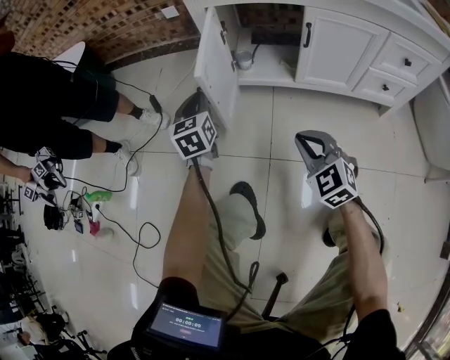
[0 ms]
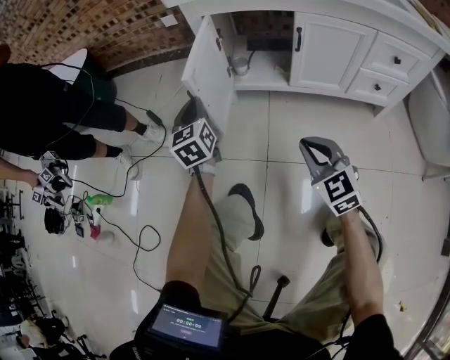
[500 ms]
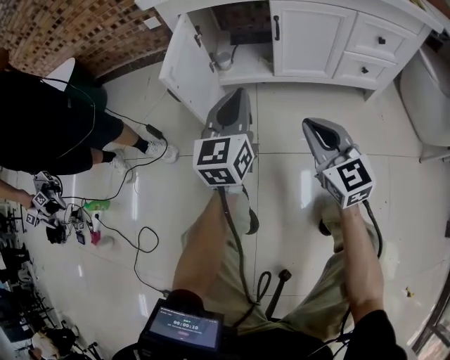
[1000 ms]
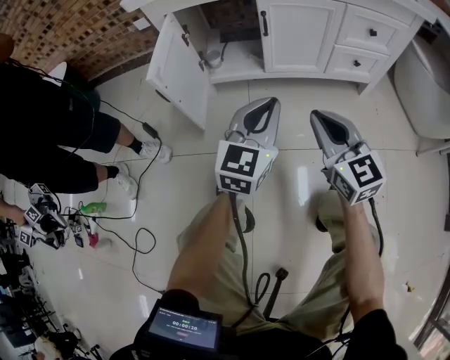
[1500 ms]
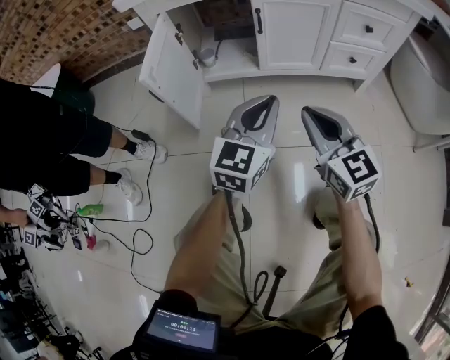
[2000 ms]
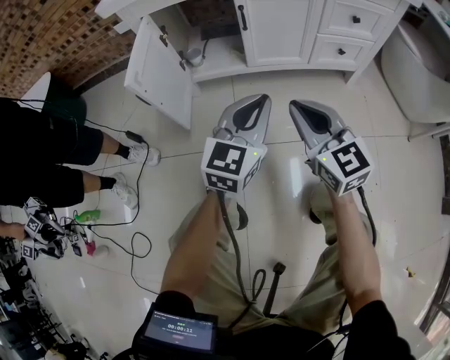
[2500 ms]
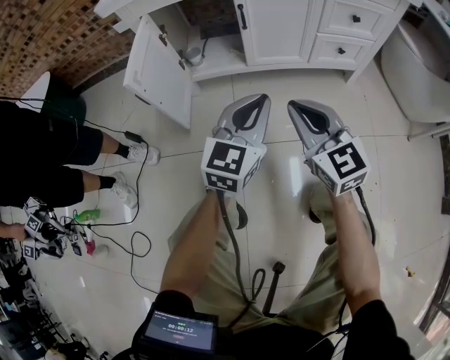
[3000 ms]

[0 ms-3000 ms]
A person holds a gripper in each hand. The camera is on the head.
0 ms to 1500 ms: The left gripper heads to the right and backward, covering about 35 cm, and changes its angle by some 40 degrees. The right gripper goes roughly 15 cm to the right, upward and backward, and rotates about 40 degrees.
1500 ms to 3000 ms: There are only small adjustments of the grippers.

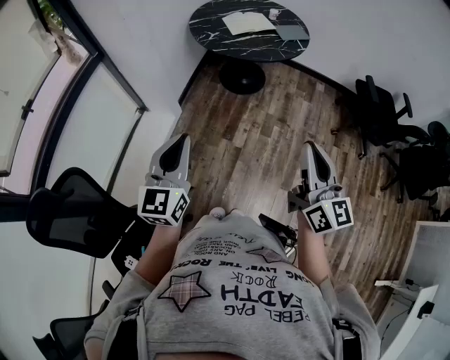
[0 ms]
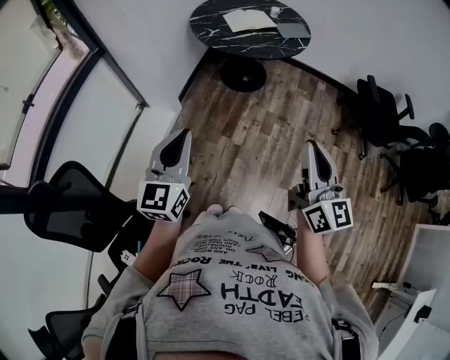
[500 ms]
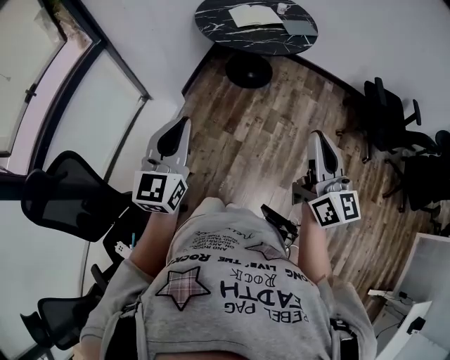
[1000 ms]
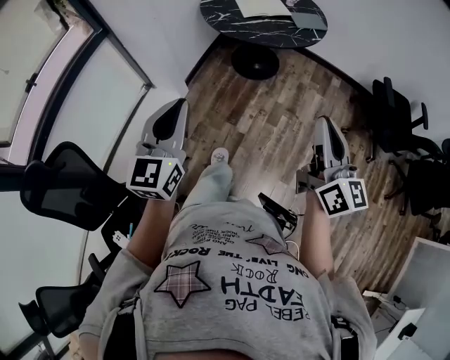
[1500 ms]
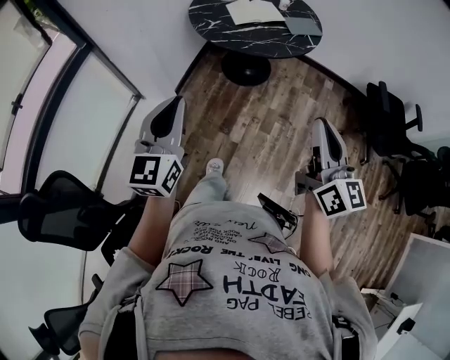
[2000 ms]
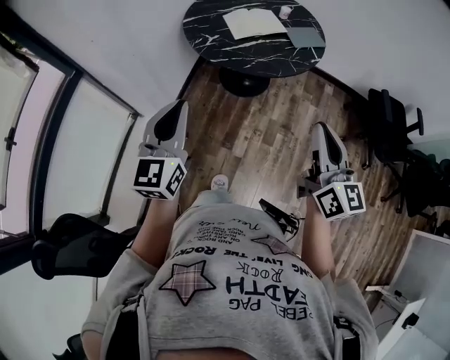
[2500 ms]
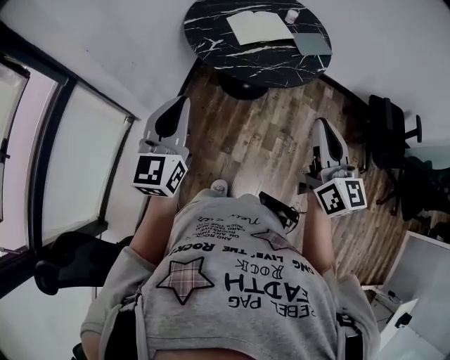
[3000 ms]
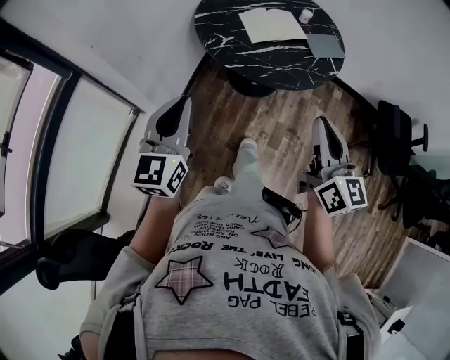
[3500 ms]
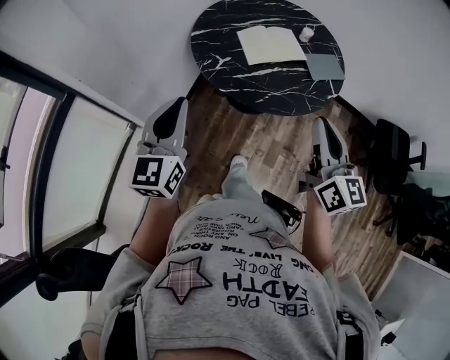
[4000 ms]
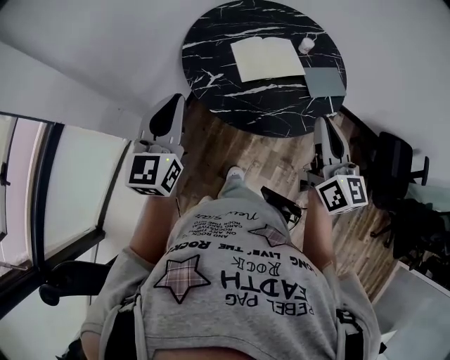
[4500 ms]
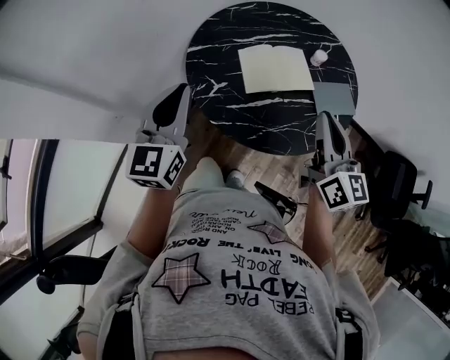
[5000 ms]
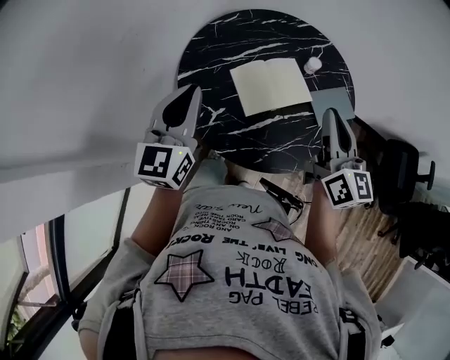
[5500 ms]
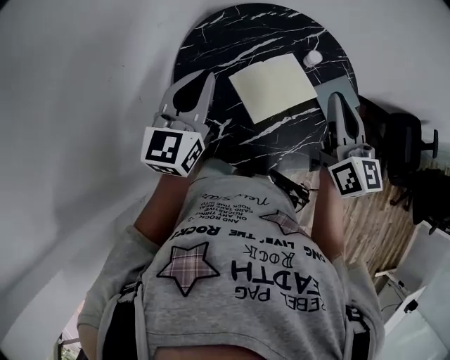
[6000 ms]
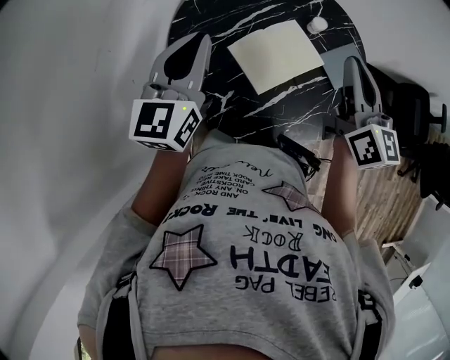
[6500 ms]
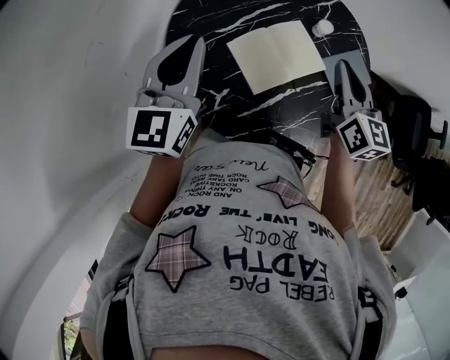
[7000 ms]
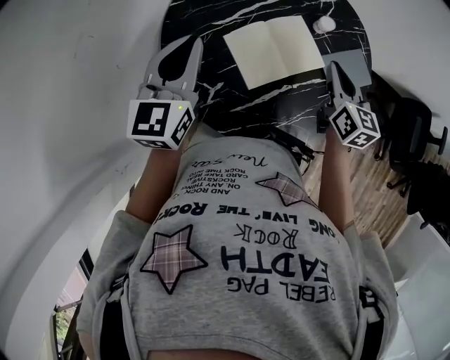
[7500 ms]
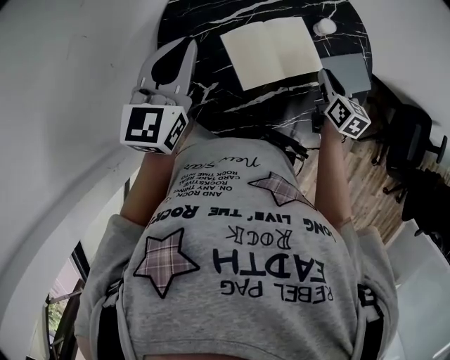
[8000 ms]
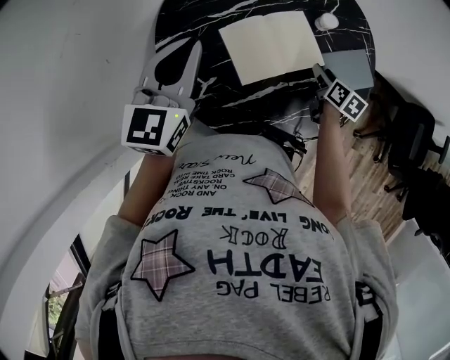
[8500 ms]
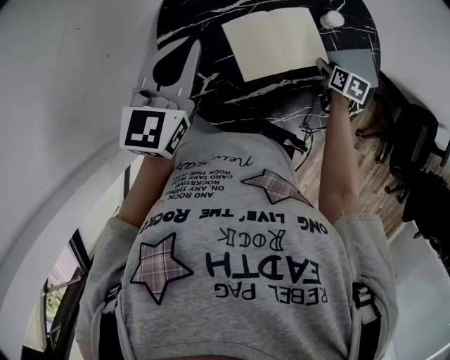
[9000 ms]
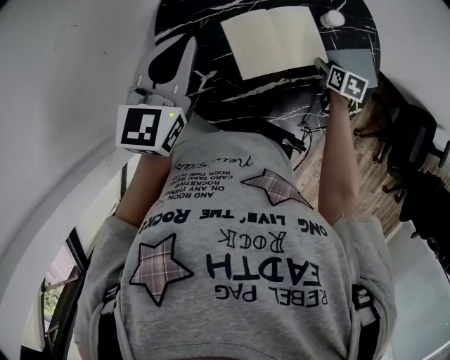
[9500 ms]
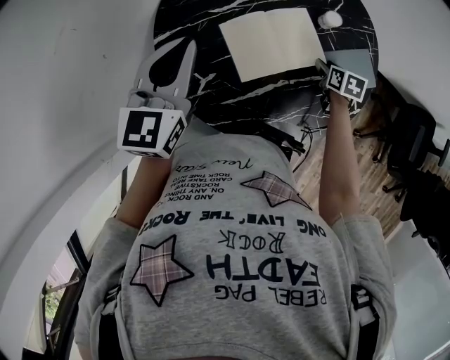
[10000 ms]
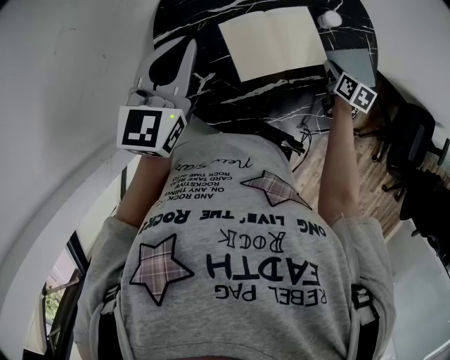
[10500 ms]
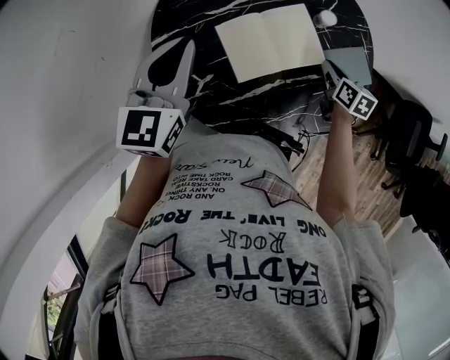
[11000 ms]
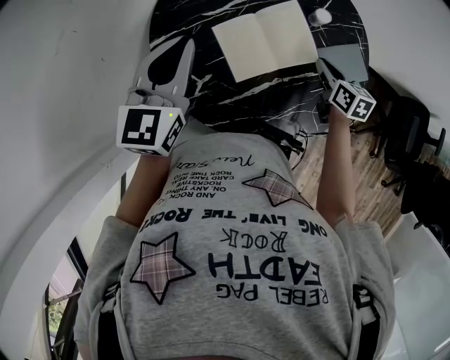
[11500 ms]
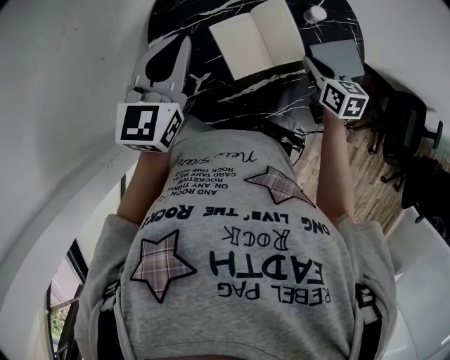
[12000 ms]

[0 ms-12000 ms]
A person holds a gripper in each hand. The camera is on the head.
0 ms to 2000 ms: Both grippers move forward, about 15 cm.
2000 ms to 4000 ms: Both grippers move forward, approximately 35 cm.
4000 ms to 6000 ms: The two grippers go about 40 cm forward.
6000 ms to 8000 ms: The right gripper moves downward, roughly 25 cm, and points its fingers approximately 30 degrees further downward. Meanwhile the left gripper is displaced downward by approximately 5 cm.
8000 ms to 10000 ms: The right gripper travels downward by roughly 10 cm, rotates approximately 30 degrees, and opens.
10000 ms to 12000 ms: The right gripper moves upward and to the left, roughly 15 cm, changes its angle by approximately 20 degrees, and closes its fingers.

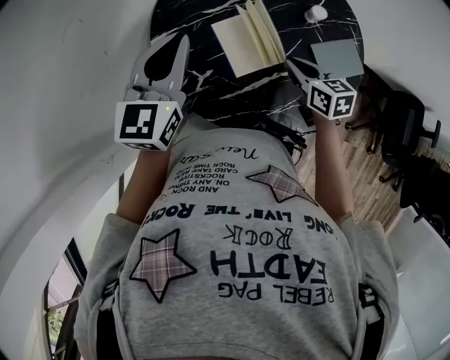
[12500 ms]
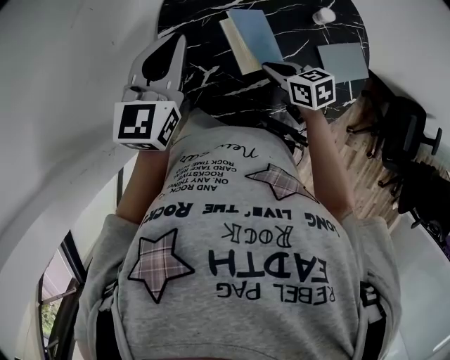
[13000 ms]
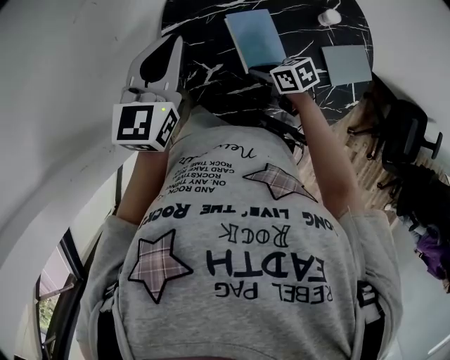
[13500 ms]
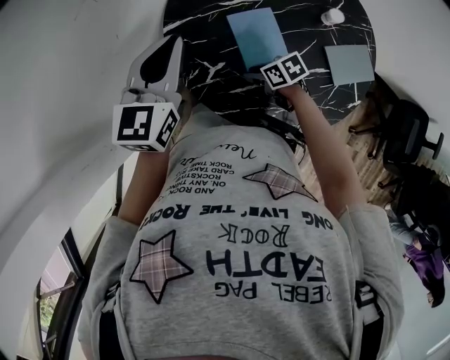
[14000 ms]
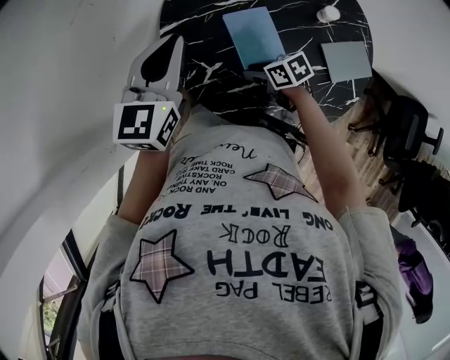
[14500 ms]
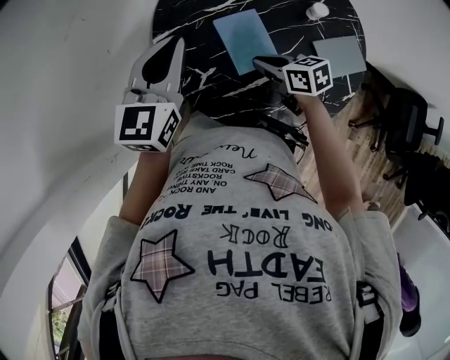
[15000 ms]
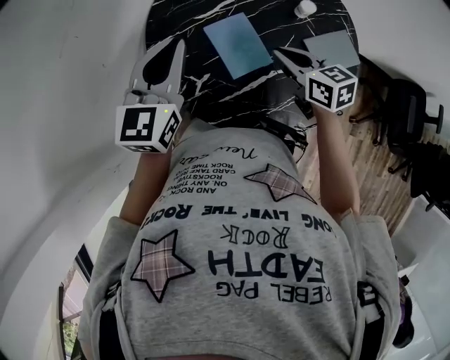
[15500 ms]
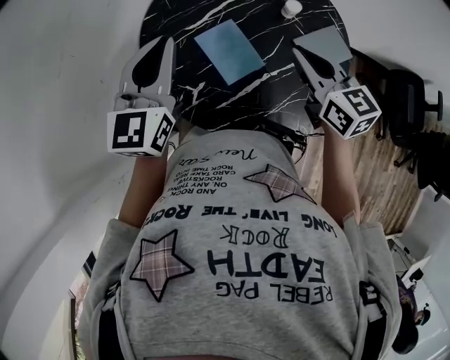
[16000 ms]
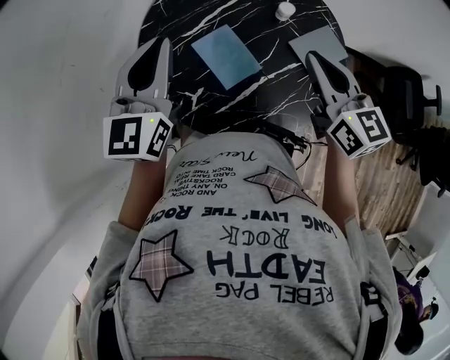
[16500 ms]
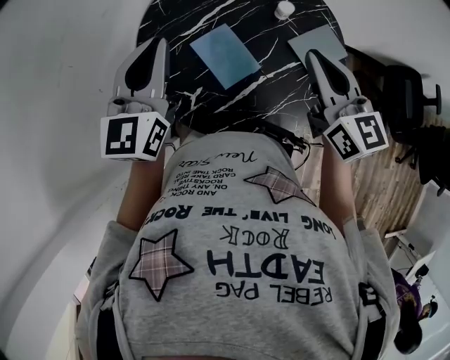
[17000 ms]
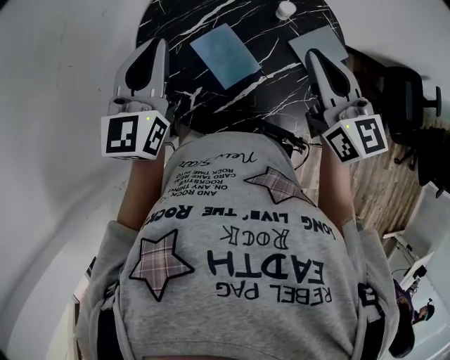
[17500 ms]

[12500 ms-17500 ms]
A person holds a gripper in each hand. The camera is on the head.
12500 ms to 15000 ms: The right gripper reaches roughly 15 cm downward, then returns, and turns by some 20 degrees.
15000 ms to 17500 ms: The left gripper is displaced upward by some 5 cm. Meanwhile the right gripper shifts about 25 cm upward, and rotates about 50 degrees.

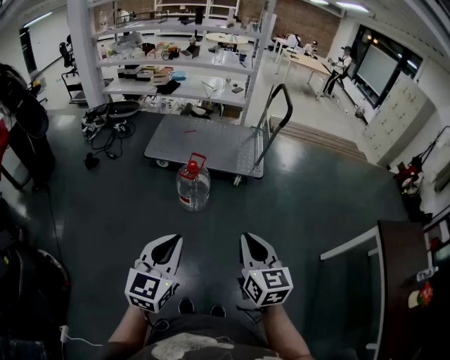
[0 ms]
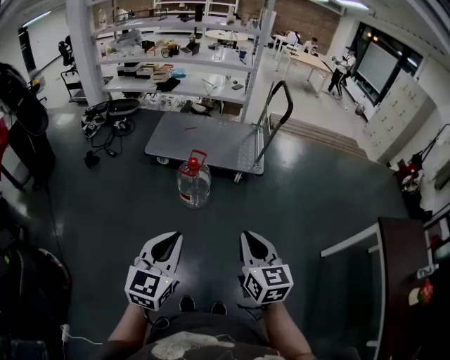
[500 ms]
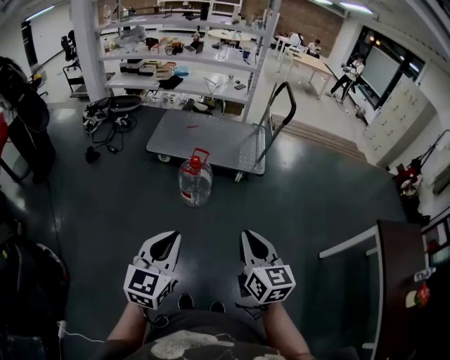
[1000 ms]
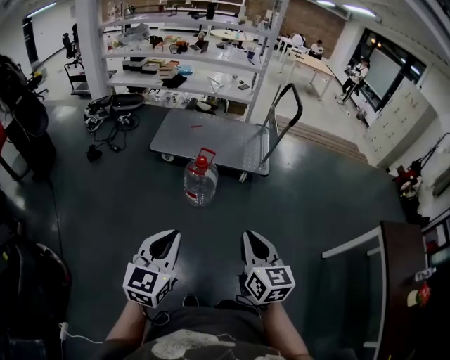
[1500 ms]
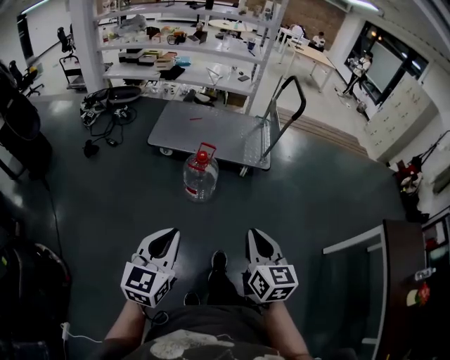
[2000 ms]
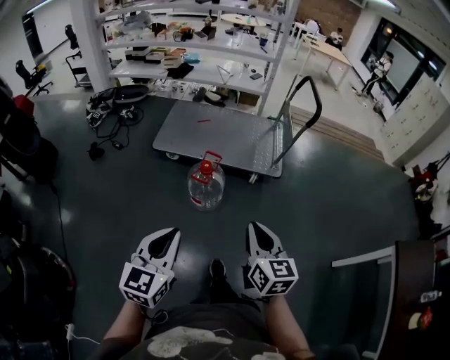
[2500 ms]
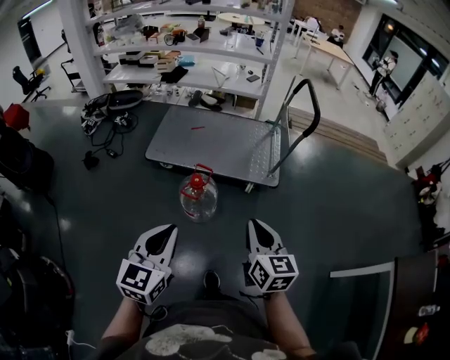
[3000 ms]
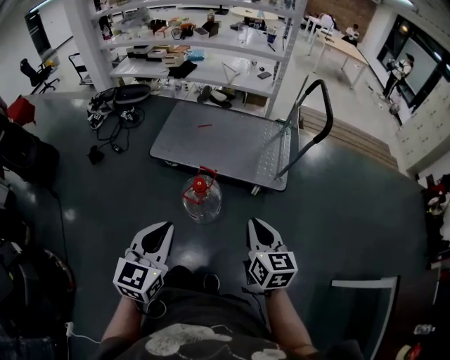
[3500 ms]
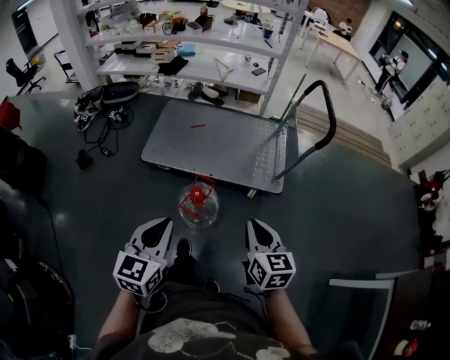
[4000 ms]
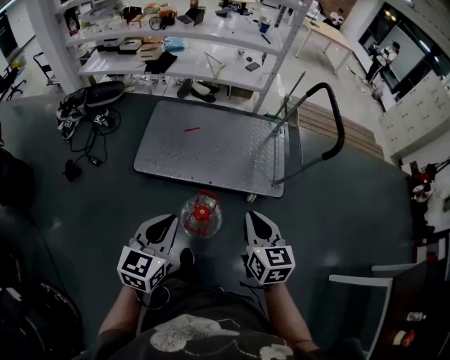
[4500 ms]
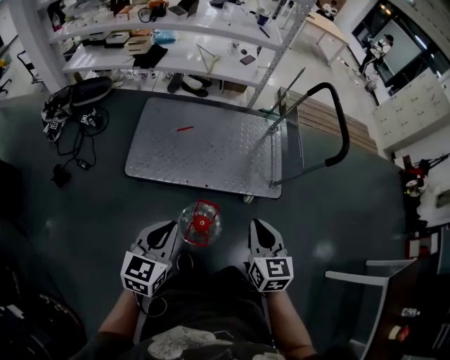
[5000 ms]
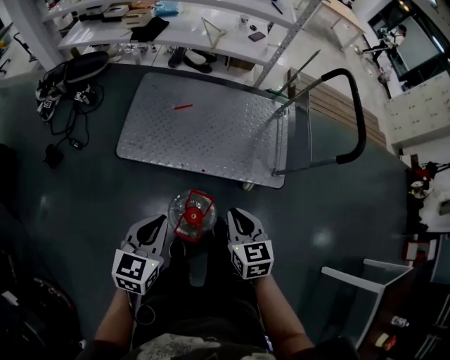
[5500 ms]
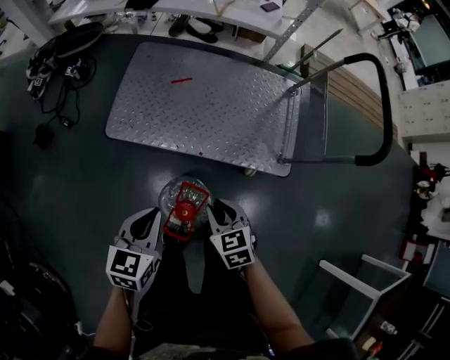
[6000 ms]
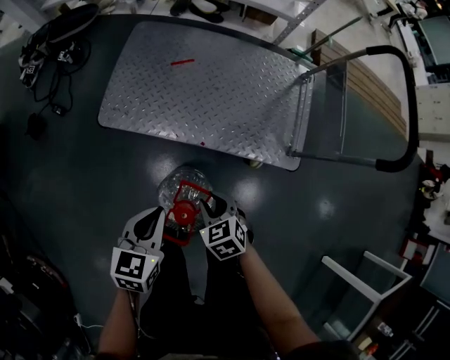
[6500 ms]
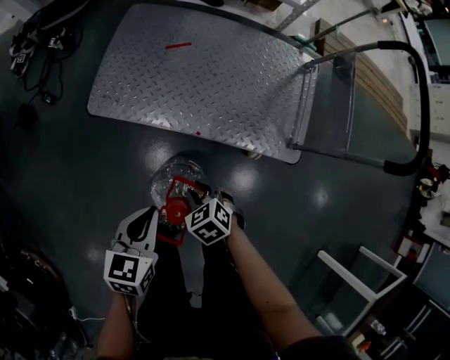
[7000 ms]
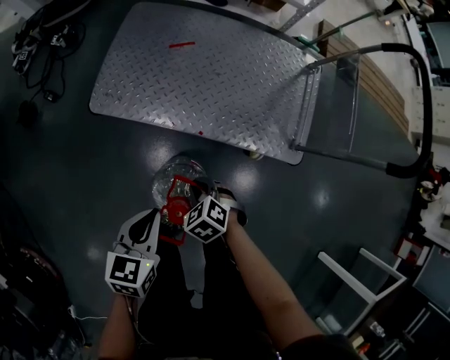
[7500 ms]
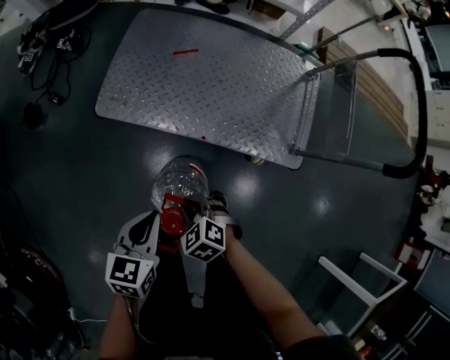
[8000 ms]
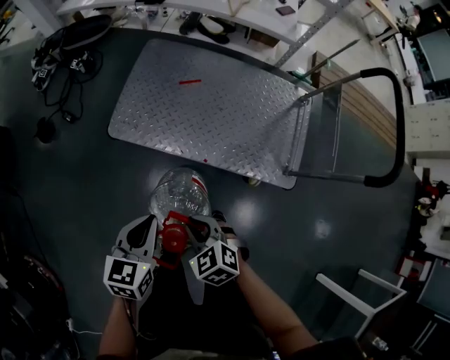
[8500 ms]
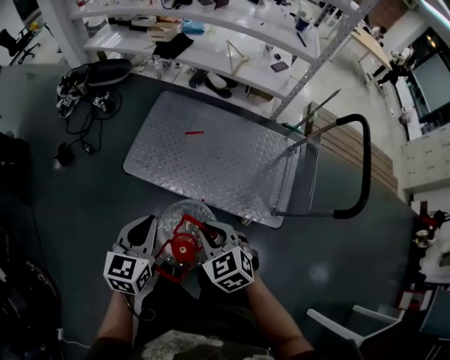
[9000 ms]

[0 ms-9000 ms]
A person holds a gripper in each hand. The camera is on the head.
0 ms to 2000 ms: The left gripper travels to the left by about 10 cm; the right gripper heads to the left, covering approximately 5 cm.
2000 ms to 4500 ms: The pair of grippers is taken forward, some 50 cm.
4500 ms to 7000 ms: Both grippers travel together downward, some 35 cm. The right gripper tips its fingers downward by some 40 degrees. The left gripper rotates some 30 degrees.
7000 ms to 9000 ms: Both grippers move upward, about 30 cm. The right gripper rotates approximately 20 degrees.
